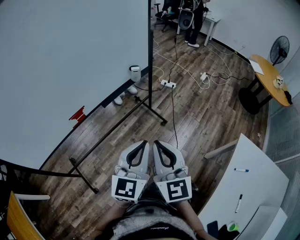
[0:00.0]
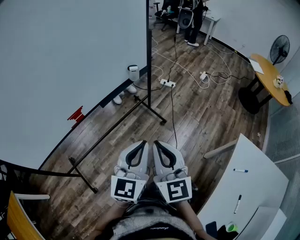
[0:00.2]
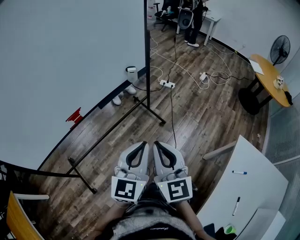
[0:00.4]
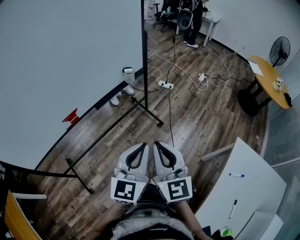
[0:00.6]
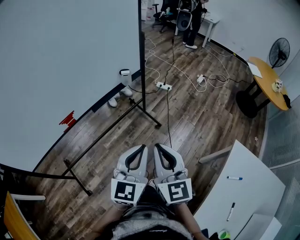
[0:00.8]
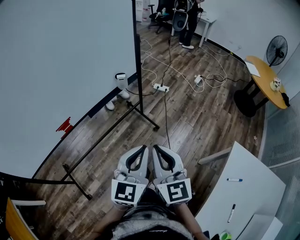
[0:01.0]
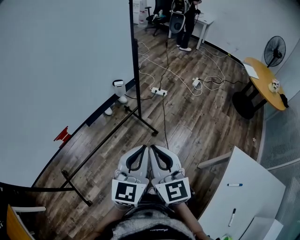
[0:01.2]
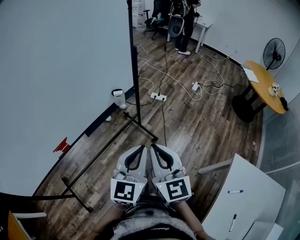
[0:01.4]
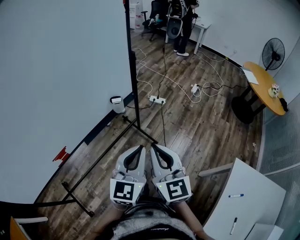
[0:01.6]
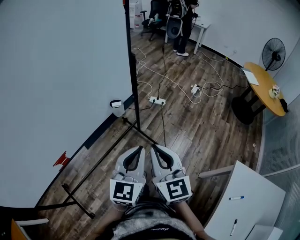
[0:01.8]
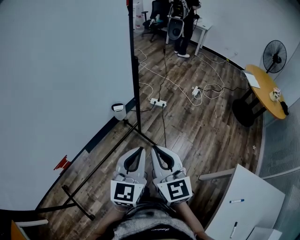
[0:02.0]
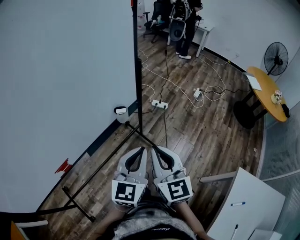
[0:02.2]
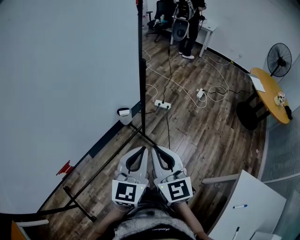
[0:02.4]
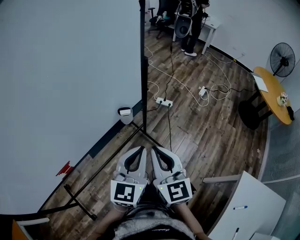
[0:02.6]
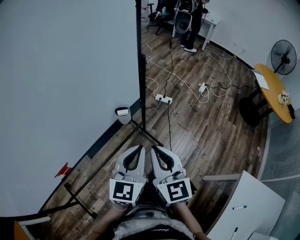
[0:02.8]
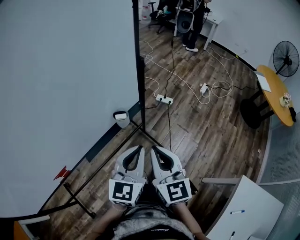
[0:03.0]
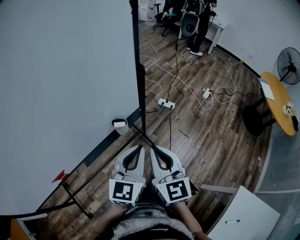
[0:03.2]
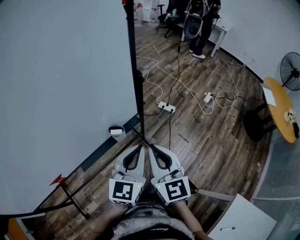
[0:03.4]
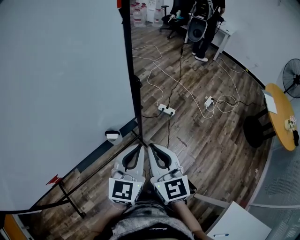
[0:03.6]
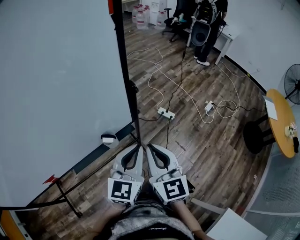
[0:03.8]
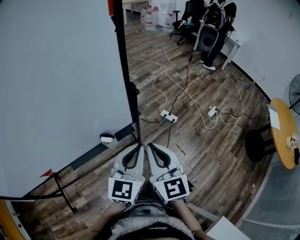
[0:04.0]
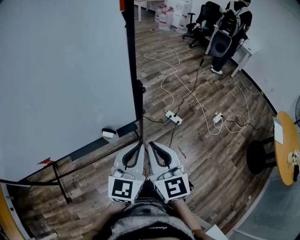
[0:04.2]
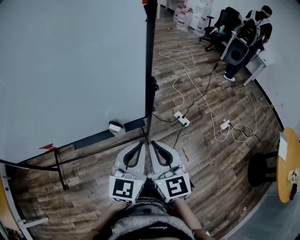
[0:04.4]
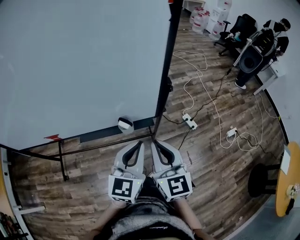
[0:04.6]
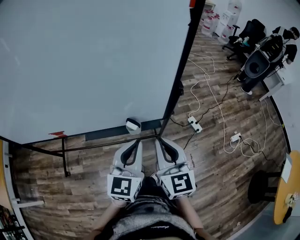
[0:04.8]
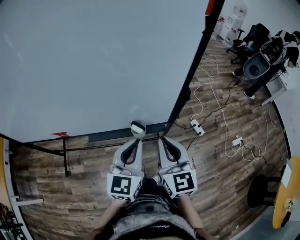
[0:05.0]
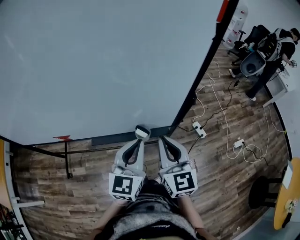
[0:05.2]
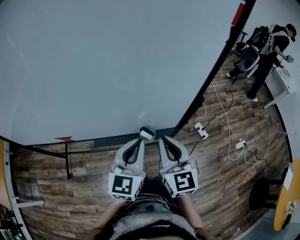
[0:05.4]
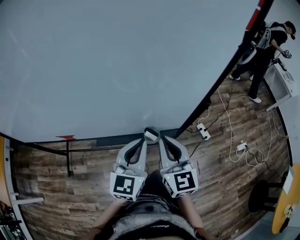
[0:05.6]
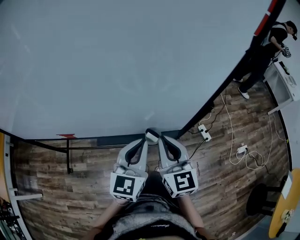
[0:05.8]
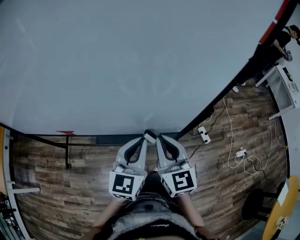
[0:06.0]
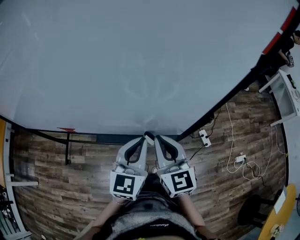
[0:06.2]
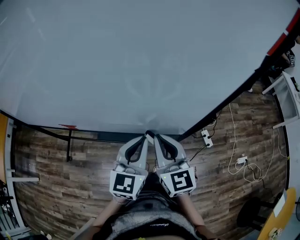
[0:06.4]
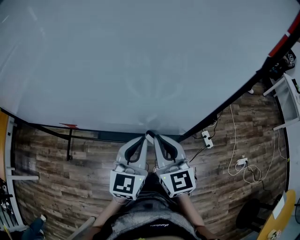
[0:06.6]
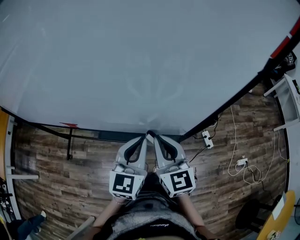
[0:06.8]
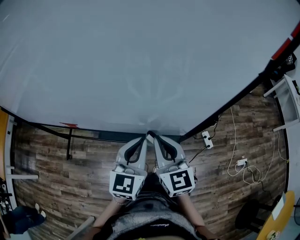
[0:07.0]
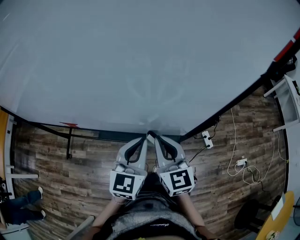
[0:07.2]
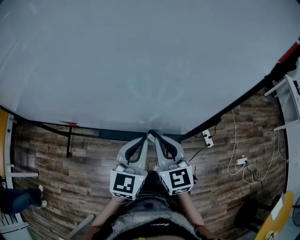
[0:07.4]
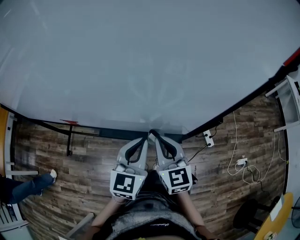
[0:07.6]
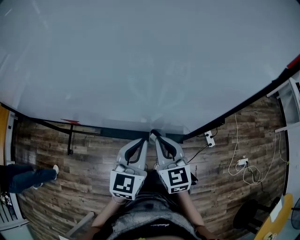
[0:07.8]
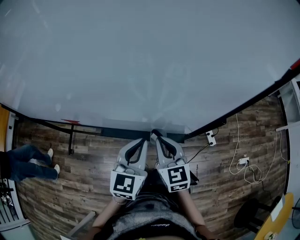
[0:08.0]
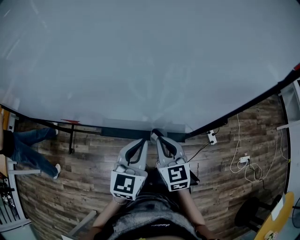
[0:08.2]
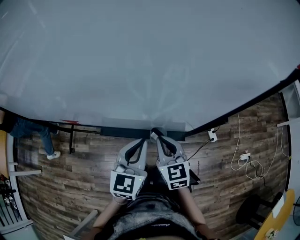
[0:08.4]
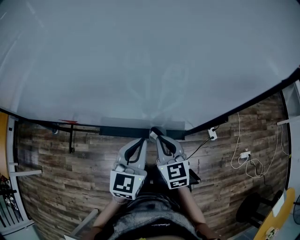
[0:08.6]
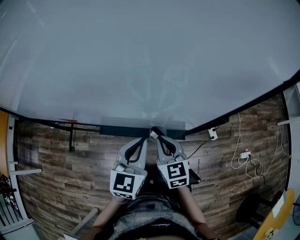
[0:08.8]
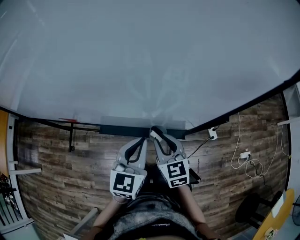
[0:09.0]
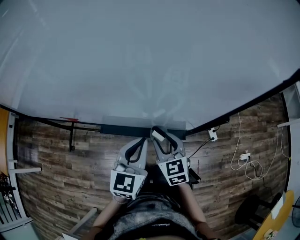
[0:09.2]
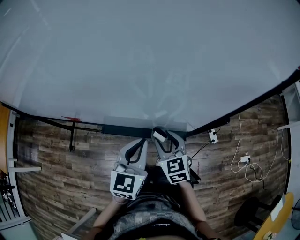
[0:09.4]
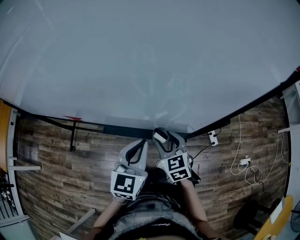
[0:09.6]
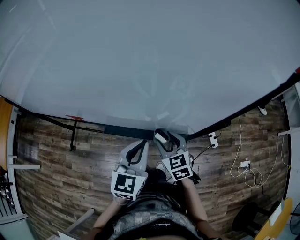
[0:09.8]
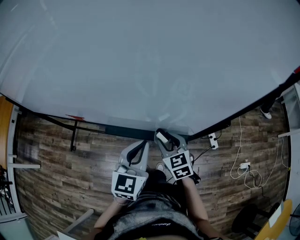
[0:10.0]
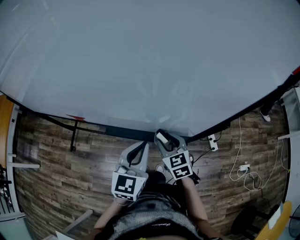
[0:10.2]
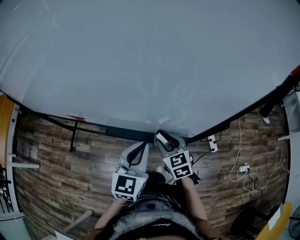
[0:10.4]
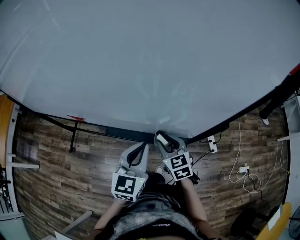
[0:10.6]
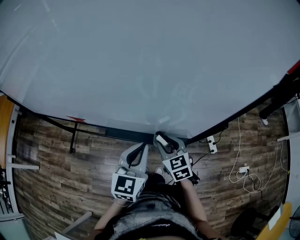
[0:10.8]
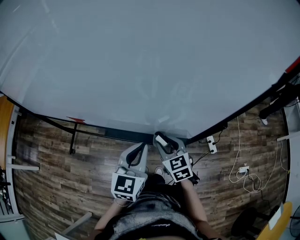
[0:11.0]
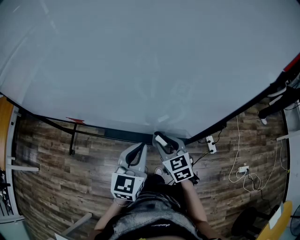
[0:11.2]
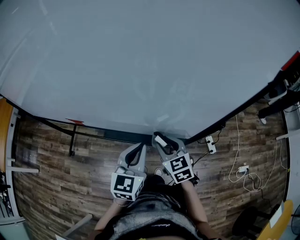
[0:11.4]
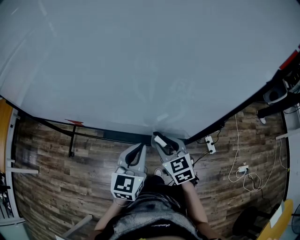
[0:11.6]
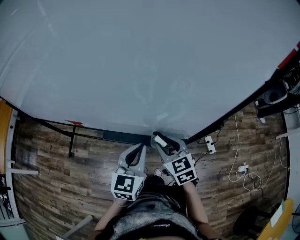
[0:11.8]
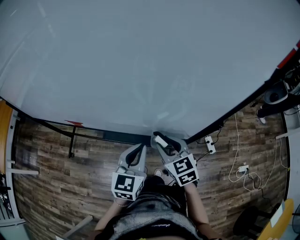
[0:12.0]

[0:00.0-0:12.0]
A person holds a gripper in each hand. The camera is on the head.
0.0 to 1.6 s: The grippers both shift forward by about 20 cm.
1.6 to 3.0 s: Both grippers travel together forward, roughly 15 cm.
3.0 to 4.4 s: The left gripper moves approximately 15 cm, and swivels roughly 30 degrees, while the right gripper shifts by roughly 20 cm, and changes its angle by about 30 degrees.
4.4 to 6.0 s: The left gripper goes roughly 20 cm to the left and forward, while the right gripper moves forward and to the left, some 20 cm.
6.0 to 7.6 s: The grippers stay close to where they were, moving slightly.
7.6 to 9.0 s: The right gripper travels downward by about 5 cm.
9.0 to 10.4 s: The grippers make only small movements.
10.4 to 12.0 s: The right gripper heads upward, covering about 5 cm.

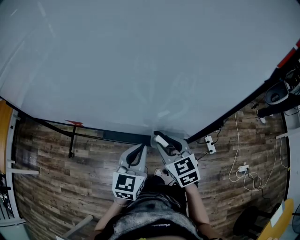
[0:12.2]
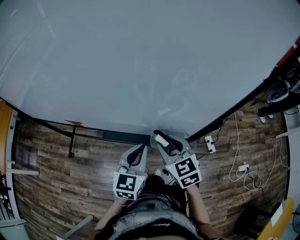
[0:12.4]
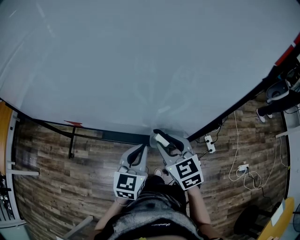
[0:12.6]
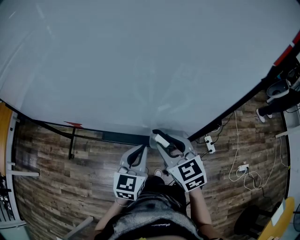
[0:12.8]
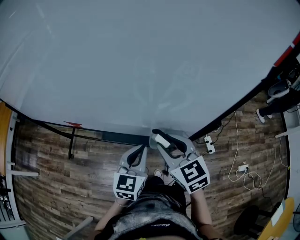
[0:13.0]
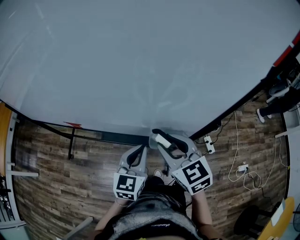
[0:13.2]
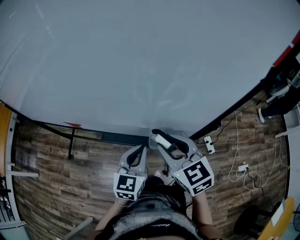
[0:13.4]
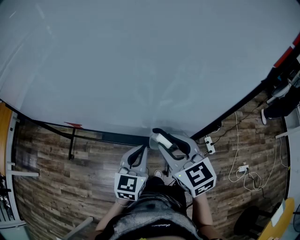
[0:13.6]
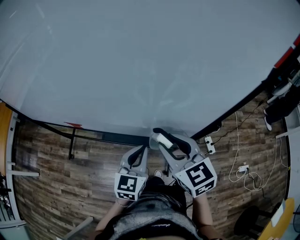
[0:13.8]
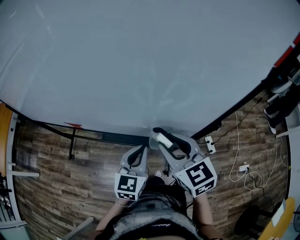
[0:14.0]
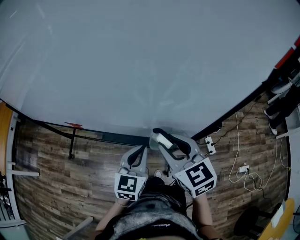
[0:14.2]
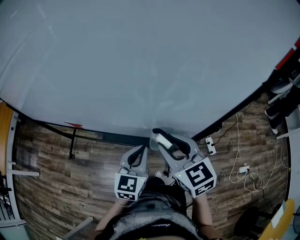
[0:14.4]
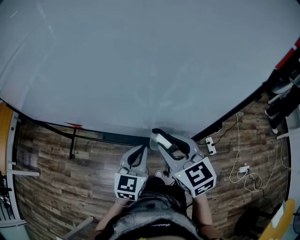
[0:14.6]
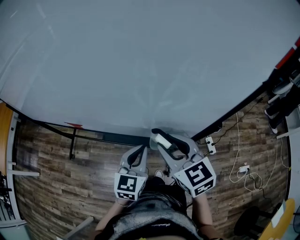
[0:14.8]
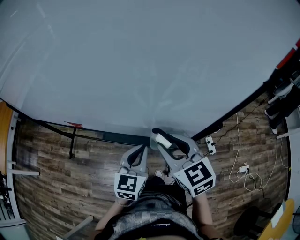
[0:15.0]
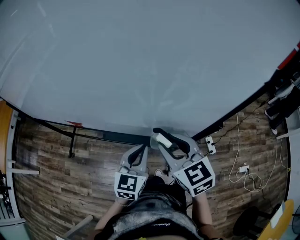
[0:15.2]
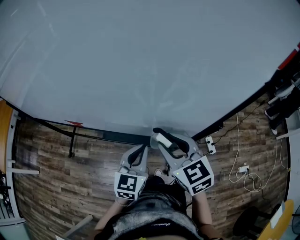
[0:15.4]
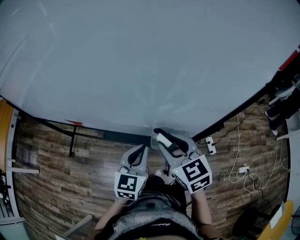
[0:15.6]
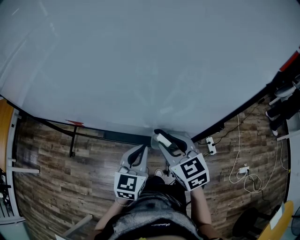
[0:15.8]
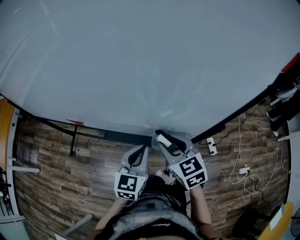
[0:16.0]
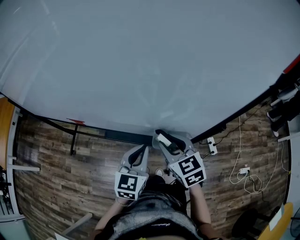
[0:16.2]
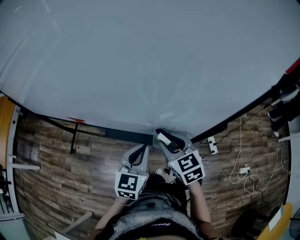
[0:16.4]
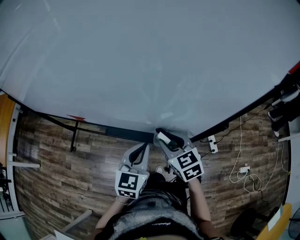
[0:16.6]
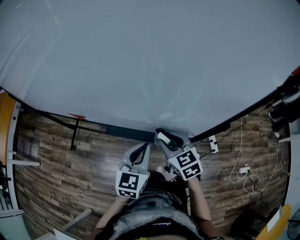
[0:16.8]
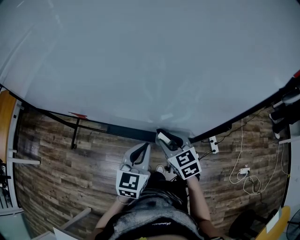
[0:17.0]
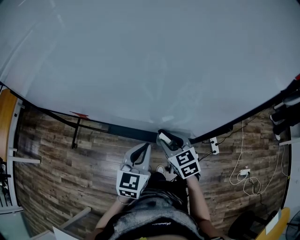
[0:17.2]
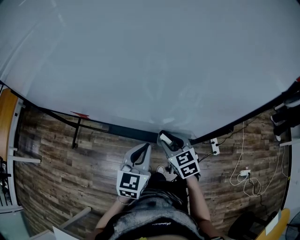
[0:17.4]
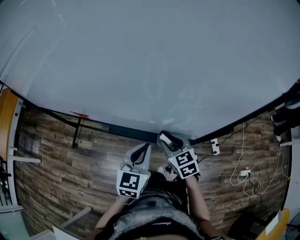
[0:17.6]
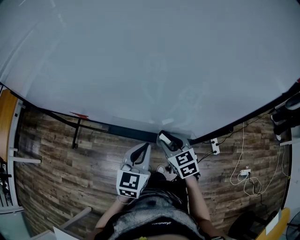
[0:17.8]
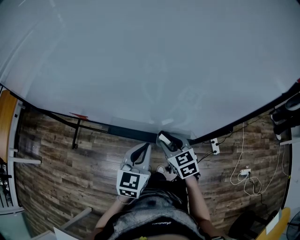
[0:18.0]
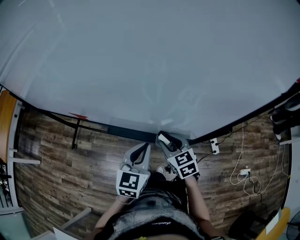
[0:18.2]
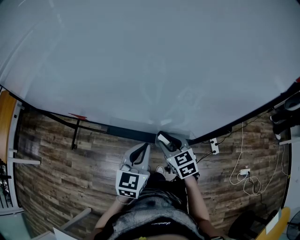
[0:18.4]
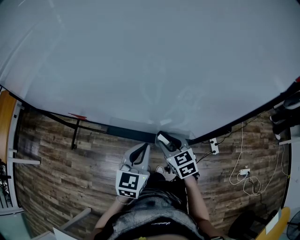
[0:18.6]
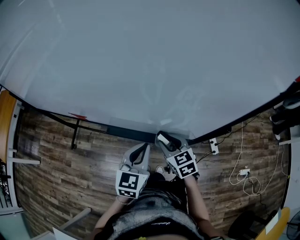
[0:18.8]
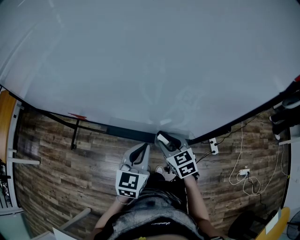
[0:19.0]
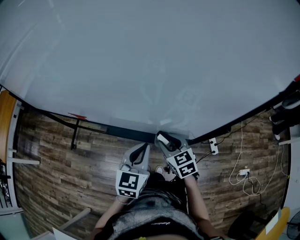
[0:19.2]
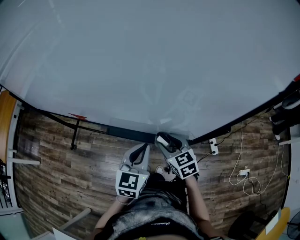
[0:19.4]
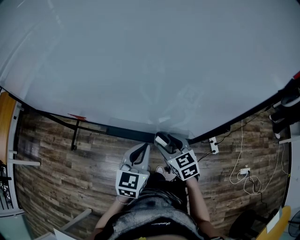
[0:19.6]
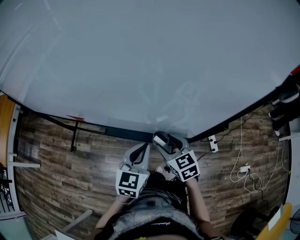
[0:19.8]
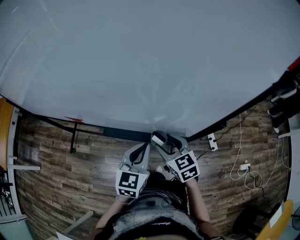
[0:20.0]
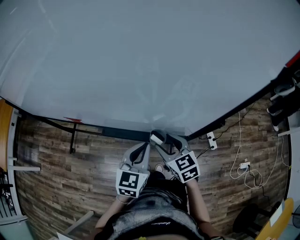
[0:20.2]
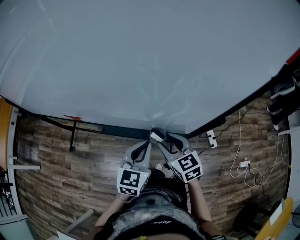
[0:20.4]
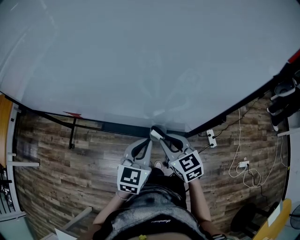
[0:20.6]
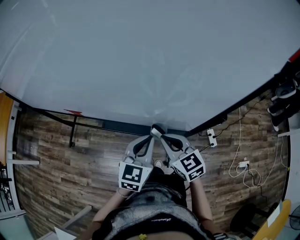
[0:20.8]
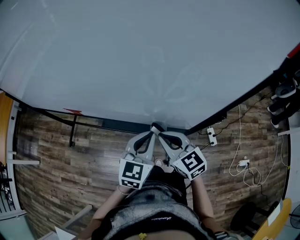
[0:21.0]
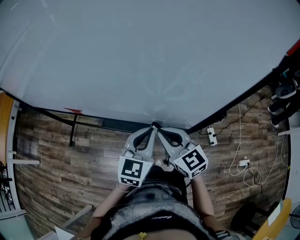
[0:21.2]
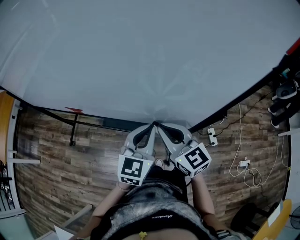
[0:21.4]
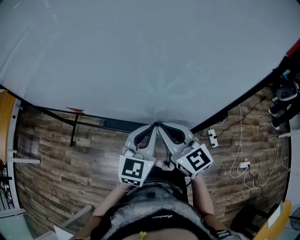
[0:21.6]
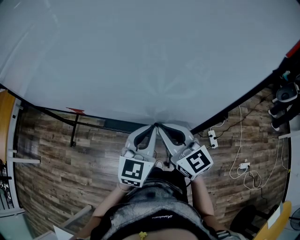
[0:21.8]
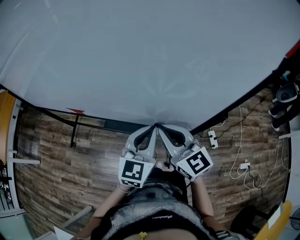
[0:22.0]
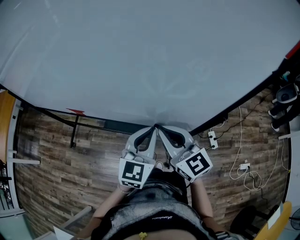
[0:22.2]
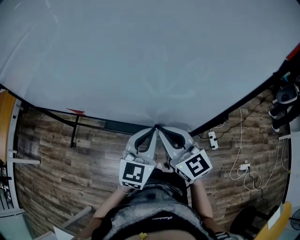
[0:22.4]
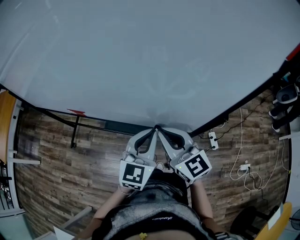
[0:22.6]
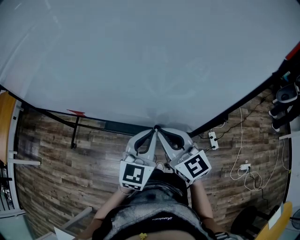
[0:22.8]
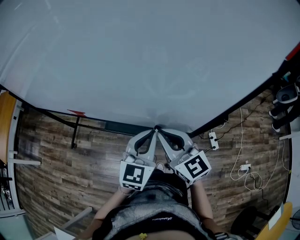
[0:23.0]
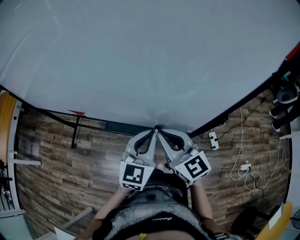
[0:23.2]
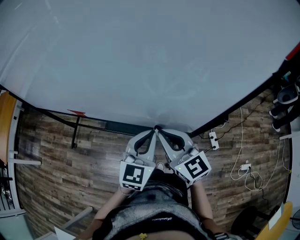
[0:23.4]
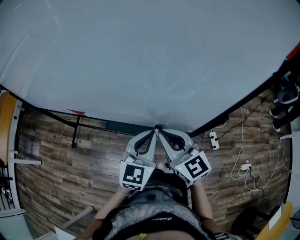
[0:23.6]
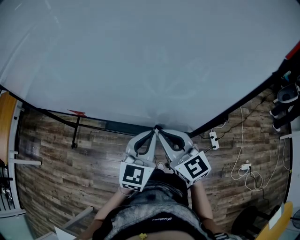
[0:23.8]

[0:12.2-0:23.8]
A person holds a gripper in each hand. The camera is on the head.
12.2 to 13.6 s: The right gripper goes about 10 cm upward.
13.6 to 15.0 s: The two grippers keep their place.
15.0 to 16.6 s: The right gripper shifts about 10 cm downward.
16.6 to 18.0 s: The right gripper heads downward, covering roughly 5 cm.
18.0 to 19.4 s: Neither gripper changes place.
19.4 to 21.0 s: The right gripper is displaced upward by approximately 5 cm, and closes.
21.0 to 22.4 s: The right gripper moves upward, roughly 10 cm.
22.4 to 23.8 s: The two grippers keep their place.

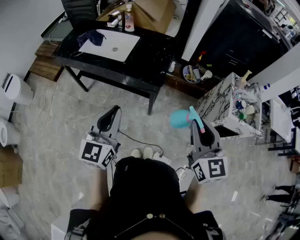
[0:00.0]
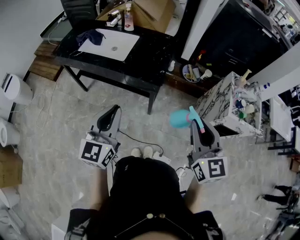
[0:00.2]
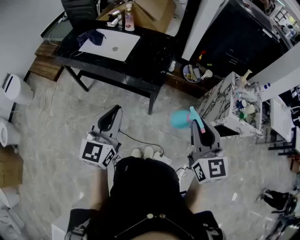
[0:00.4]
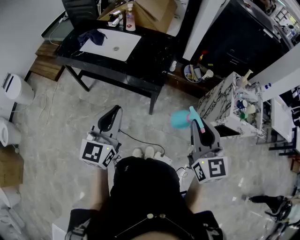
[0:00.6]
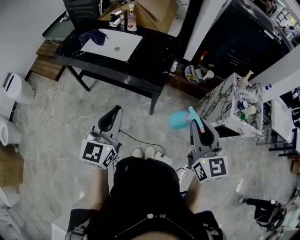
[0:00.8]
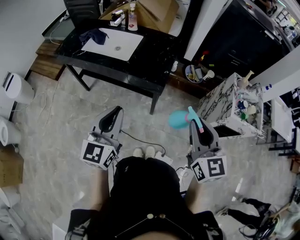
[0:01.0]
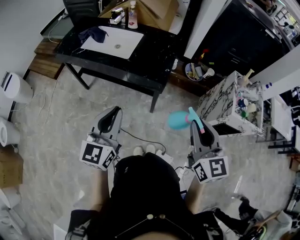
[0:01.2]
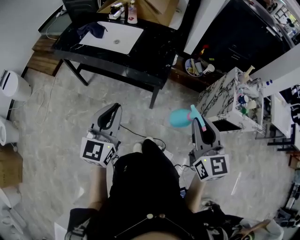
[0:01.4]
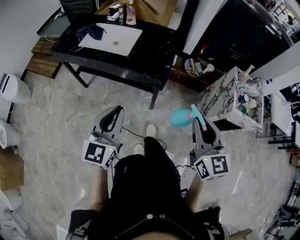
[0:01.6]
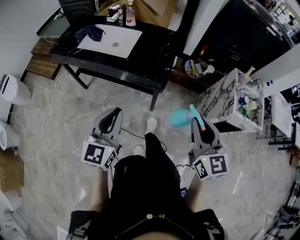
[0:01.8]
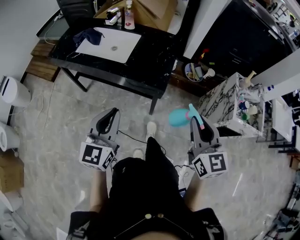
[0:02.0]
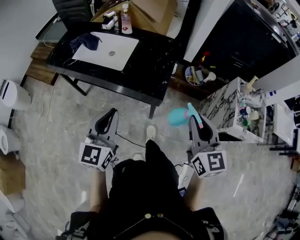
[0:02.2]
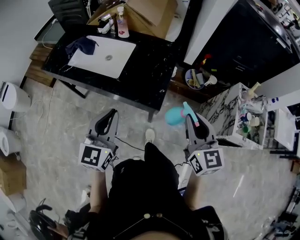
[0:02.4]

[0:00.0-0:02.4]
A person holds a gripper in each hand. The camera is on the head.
0.0 to 1.2 s: There are only small adjustments of the grippers.
1.2 to 2.4 s: Both grippers travel together forward, approximately 20 cm.
